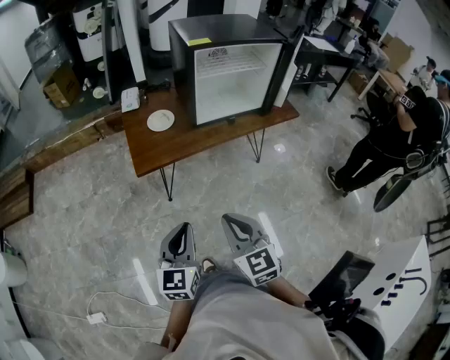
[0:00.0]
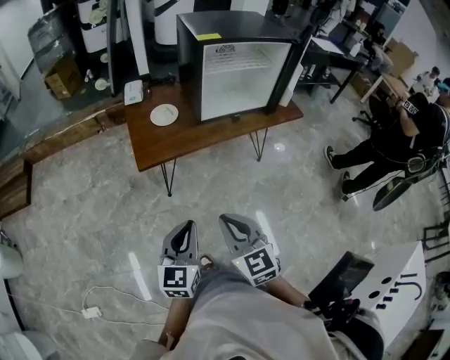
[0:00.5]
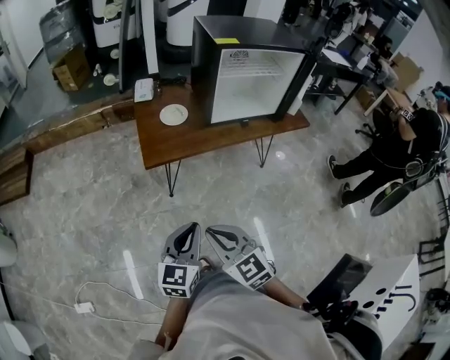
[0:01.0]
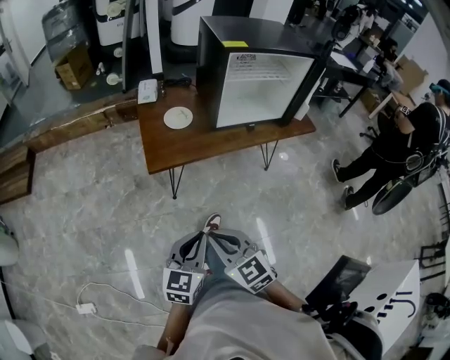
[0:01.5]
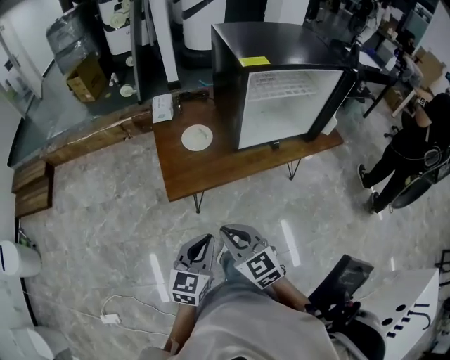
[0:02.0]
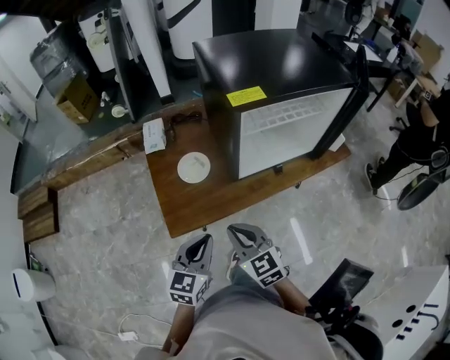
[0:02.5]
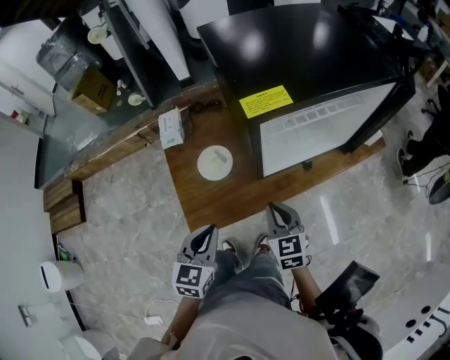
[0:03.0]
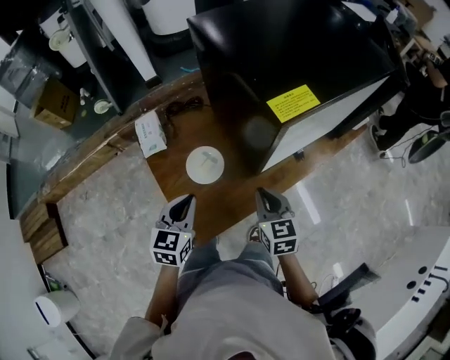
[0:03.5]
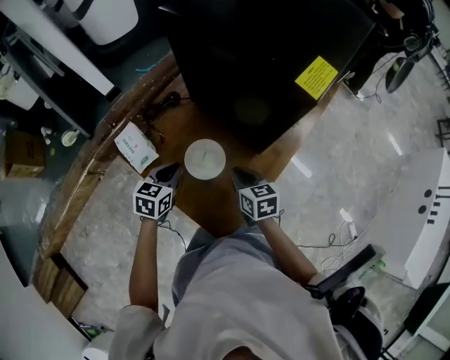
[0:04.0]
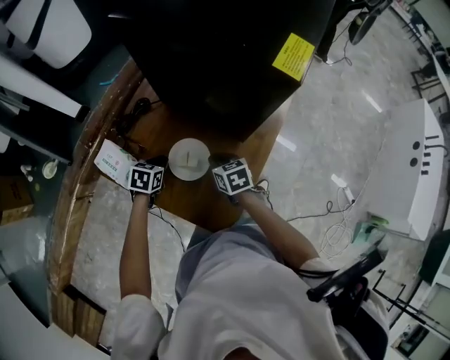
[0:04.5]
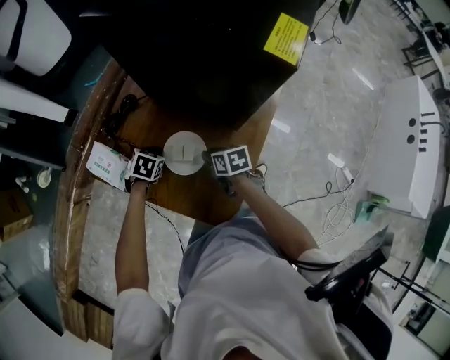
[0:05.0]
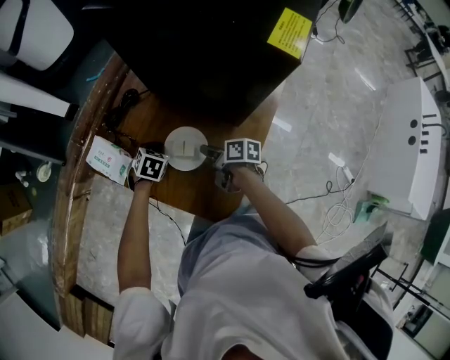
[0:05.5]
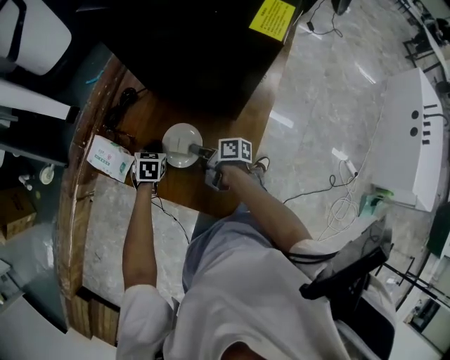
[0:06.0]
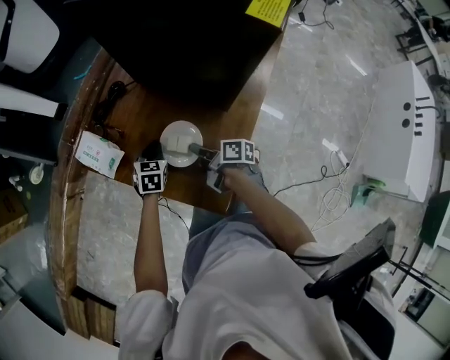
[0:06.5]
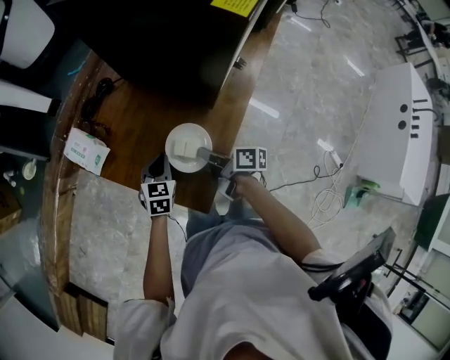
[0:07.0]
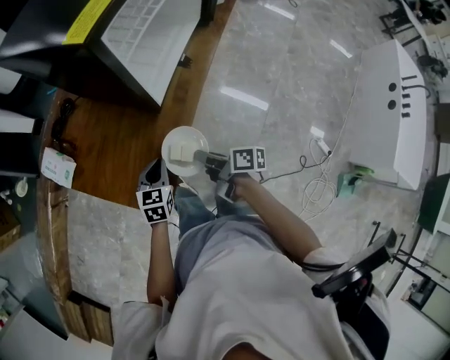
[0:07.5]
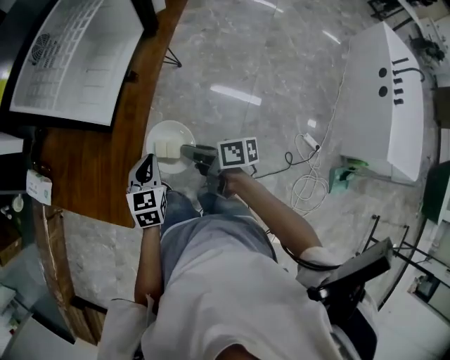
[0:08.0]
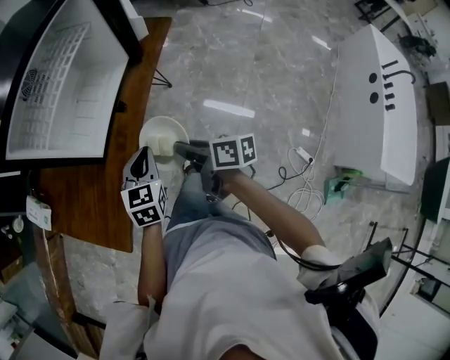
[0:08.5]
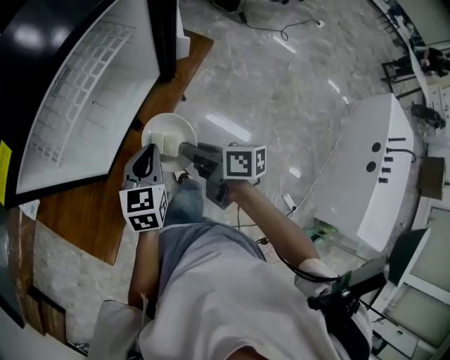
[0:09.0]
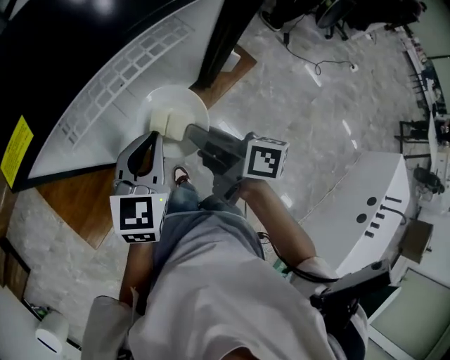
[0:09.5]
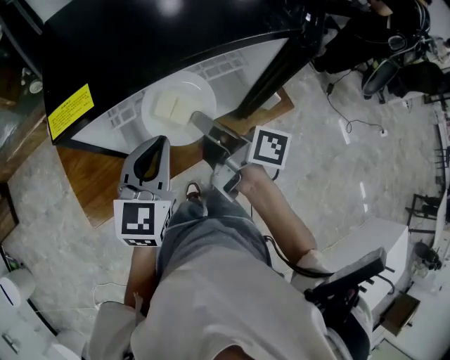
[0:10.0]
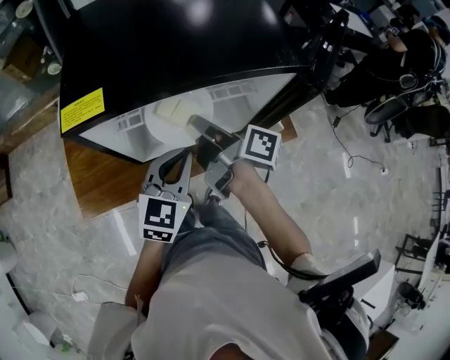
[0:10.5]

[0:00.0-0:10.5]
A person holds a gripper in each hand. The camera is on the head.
0.0 to 2.0 s: The right gripper travels forward and to the left by approximately 35 cm; the left gripper shifts roughly 30 cm forward.
2.0 to 4.0 s: Both grippers are carried about 80 cm. The left gripper swivels approximately 40 degrees; the right gripper turns by approximately 60 degrees.
4.0 to 6.5 s: Both grippers travel together downward, about 15 cm. The right gripper twists about 50 degrees clockwise, seen from behind.
6.5 to 8.5 s: The two grippers travel together, to the right, about 80 cm.
8.5 to 10.5 s: Both grippers are carried roughly 50 cm. The right gripper swivels about 40 degrees. The left gripper changes its angle by some 40 degrees.

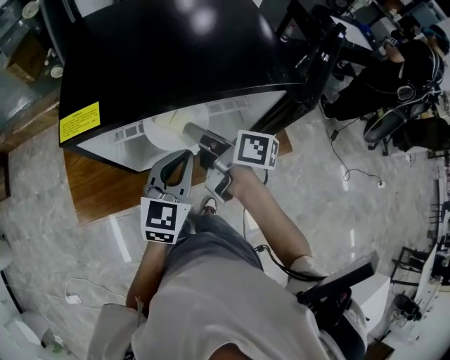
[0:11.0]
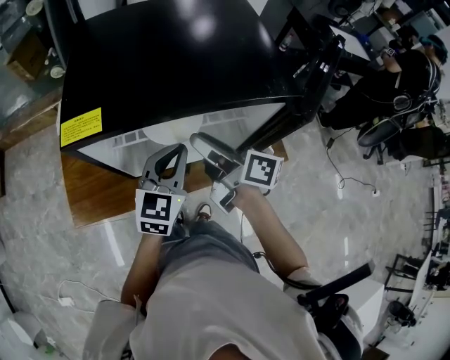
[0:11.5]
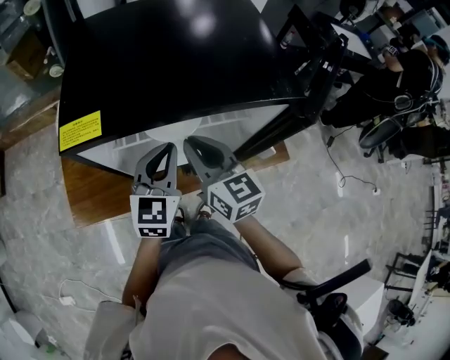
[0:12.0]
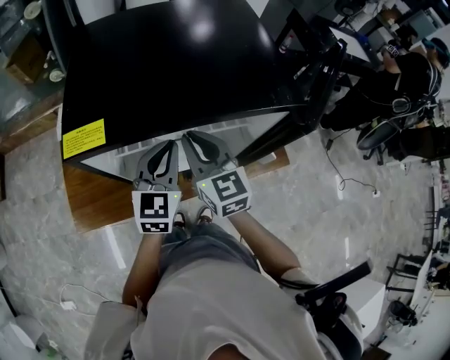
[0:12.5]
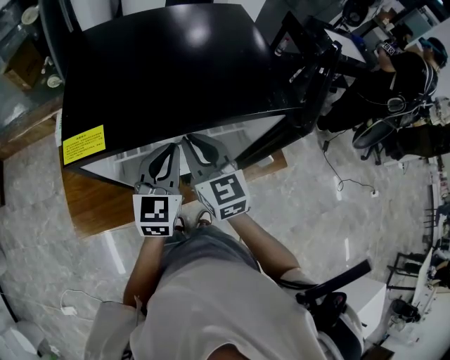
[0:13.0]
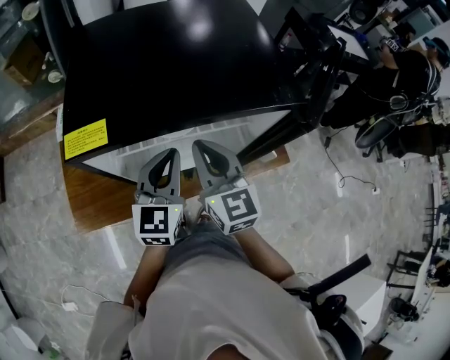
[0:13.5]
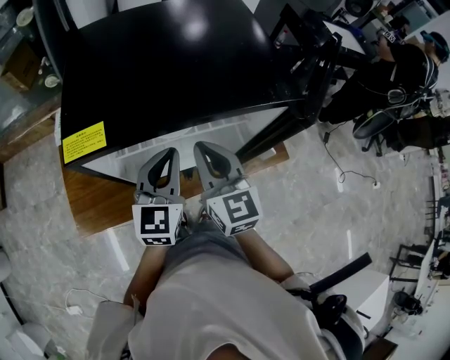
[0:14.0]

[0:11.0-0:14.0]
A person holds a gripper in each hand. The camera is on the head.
11.0 to 12.5 s: The right gripper twists approximately 60 degrees counterclockwise, seen from behind, and opens, then closes once more; the left gripper heads forward, covering roughly 5 cm.
12.5 to 14.0 s: The grippers make only small movements.

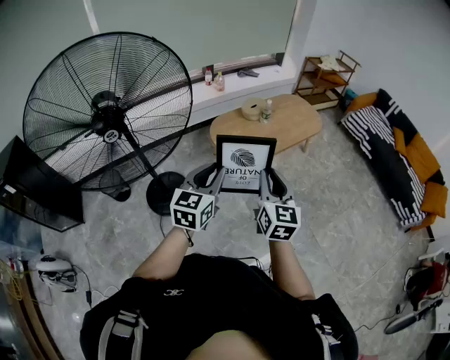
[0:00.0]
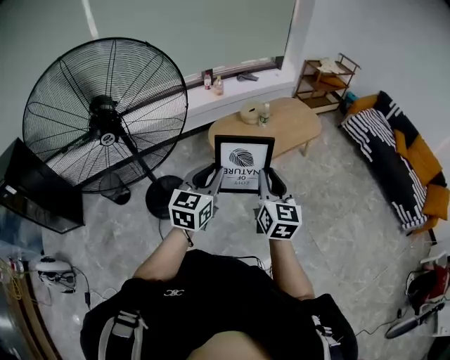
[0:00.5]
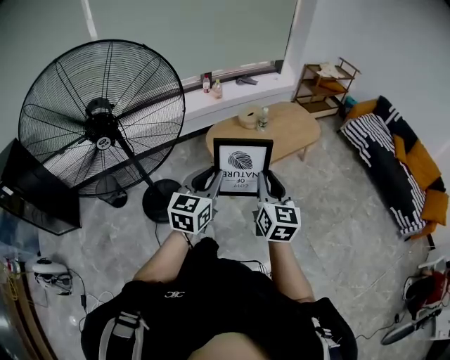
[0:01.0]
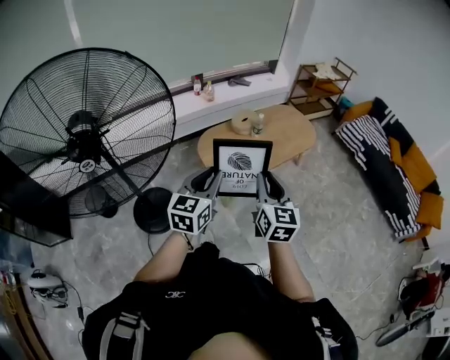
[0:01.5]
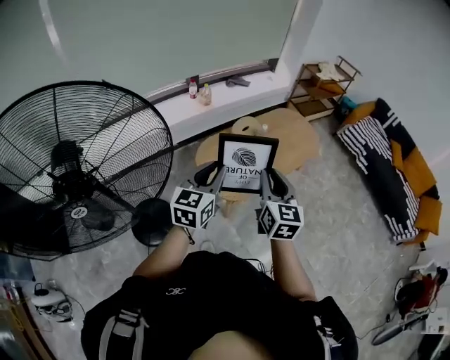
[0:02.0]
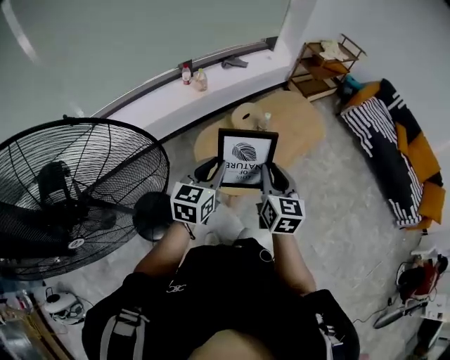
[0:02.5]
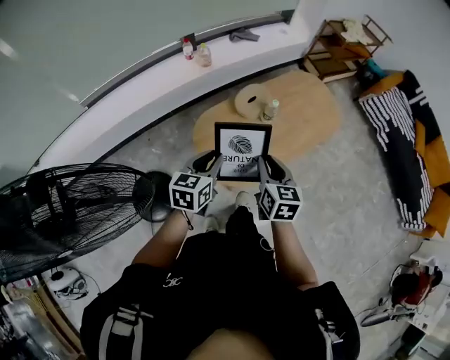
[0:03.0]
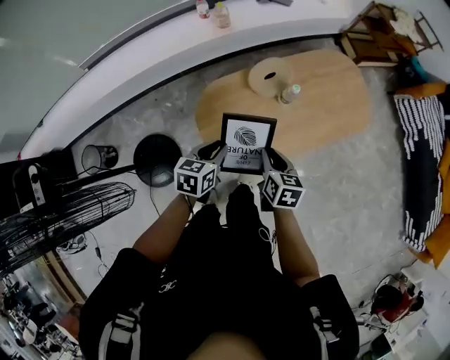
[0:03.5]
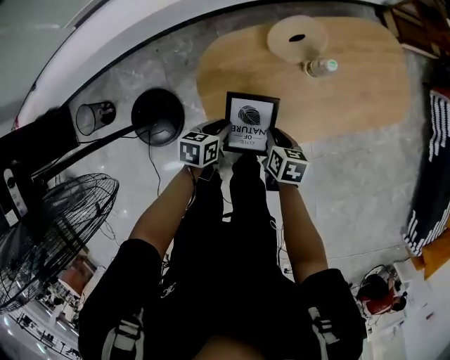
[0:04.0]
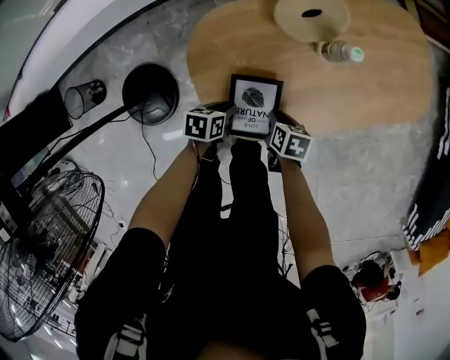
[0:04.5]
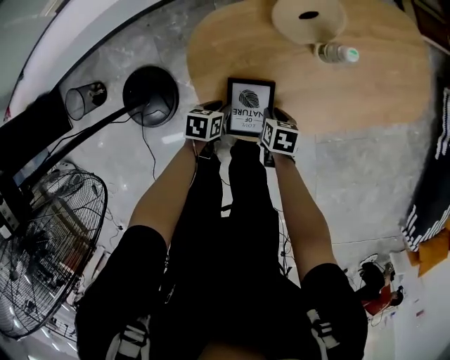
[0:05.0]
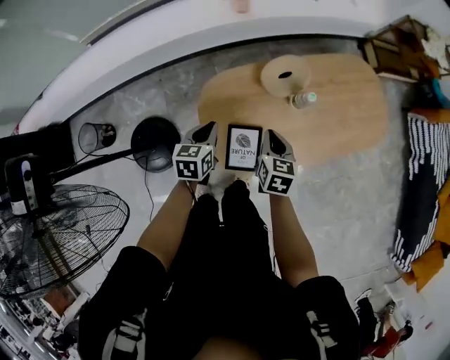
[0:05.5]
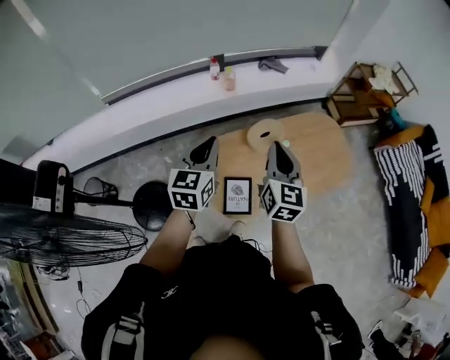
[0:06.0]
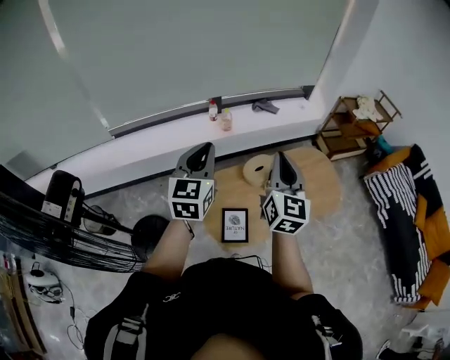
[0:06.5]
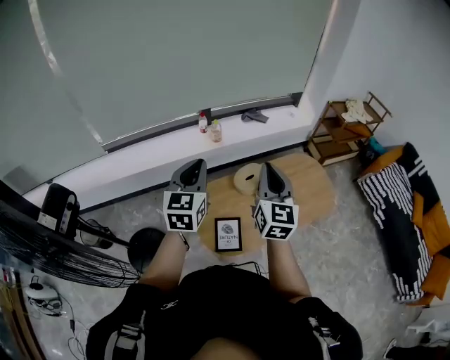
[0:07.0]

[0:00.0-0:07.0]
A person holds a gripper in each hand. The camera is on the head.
0.0 to 2.0 s: Both grippers travel together forward, roughly 35 cm.
2.0 to 3.5 s: The right gripper moves forward and downward, about 40 cm, and tips its fingers downward by approximately 30 degrees. Meanwhile the left gripper travels downward and forward by about 40 cm, and tips its fingers downward by about 30 degrees.
3.5 to 5.0 s: The two grippers go approximately 35 cm downward. The right gripper turns by some 30 degrees; the left gripper swivels about 30 degrees.
5.0 to 7.0 s: The grippers both shift upward by about 70 cm. The right gripper points its fingers some 70 degrees further upward, and closes up. Meanwhile the left gripper angles its fingers upward, by approximately 50 degrees, and closes its fingers.

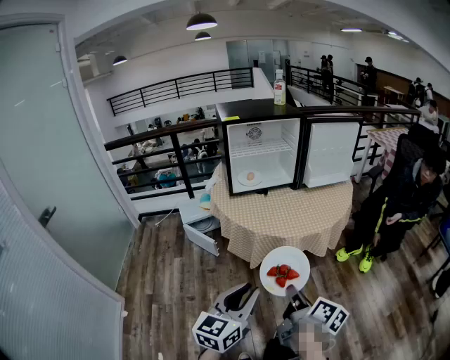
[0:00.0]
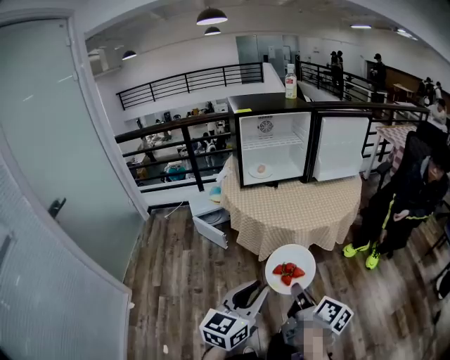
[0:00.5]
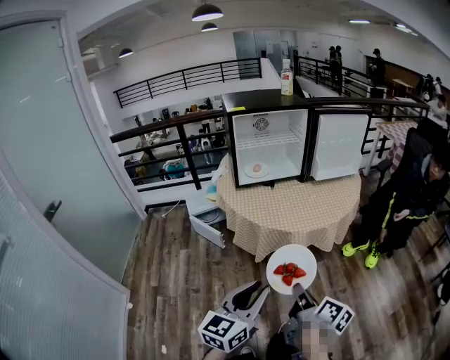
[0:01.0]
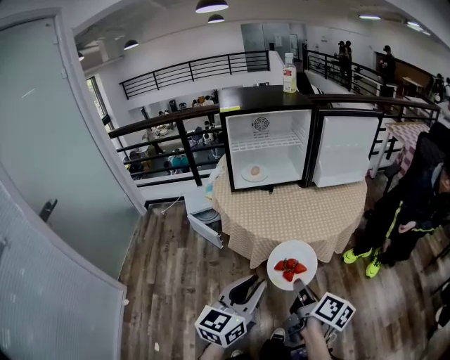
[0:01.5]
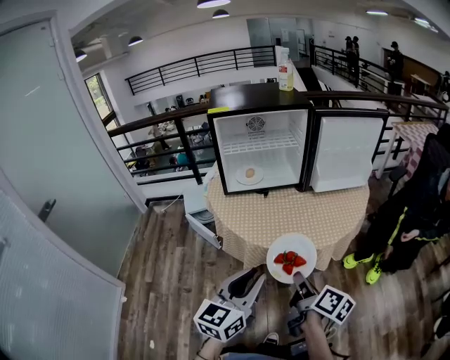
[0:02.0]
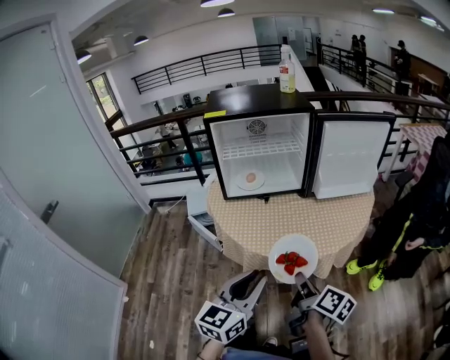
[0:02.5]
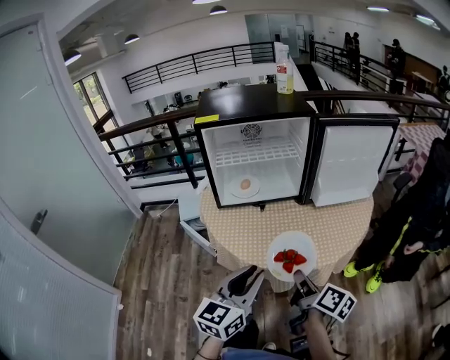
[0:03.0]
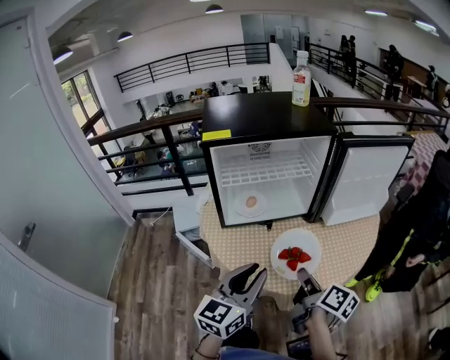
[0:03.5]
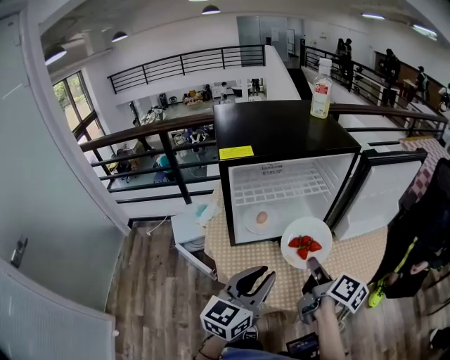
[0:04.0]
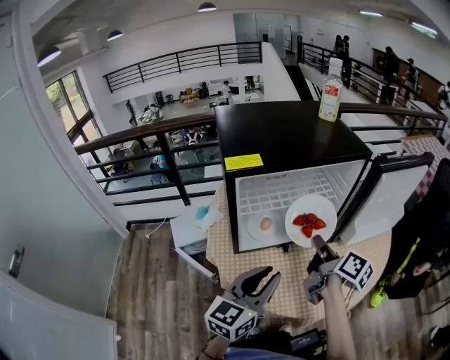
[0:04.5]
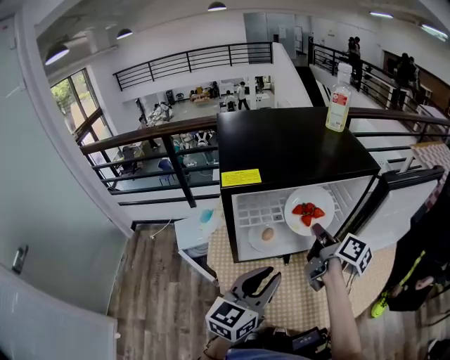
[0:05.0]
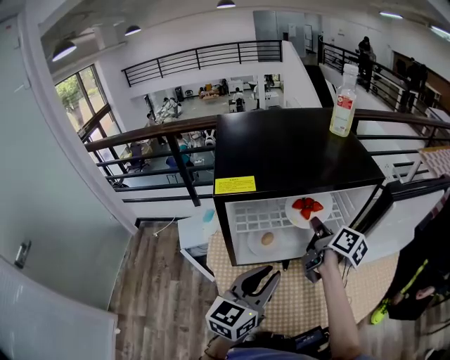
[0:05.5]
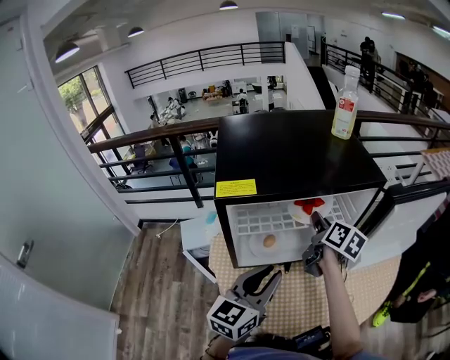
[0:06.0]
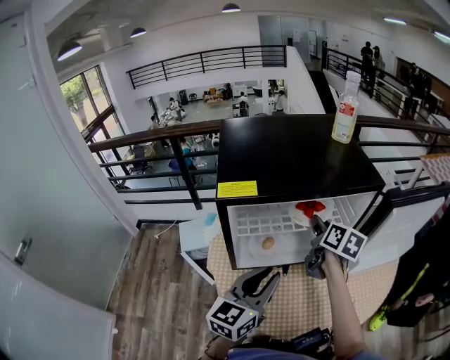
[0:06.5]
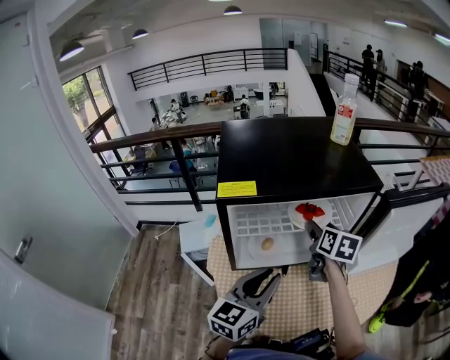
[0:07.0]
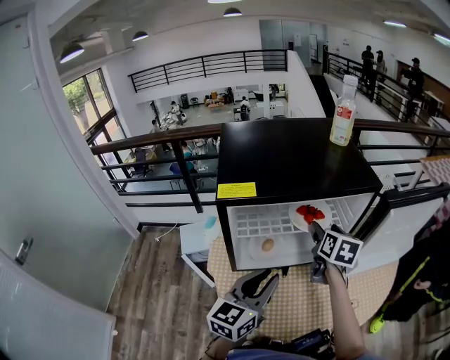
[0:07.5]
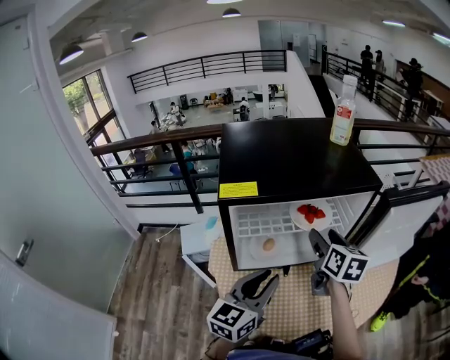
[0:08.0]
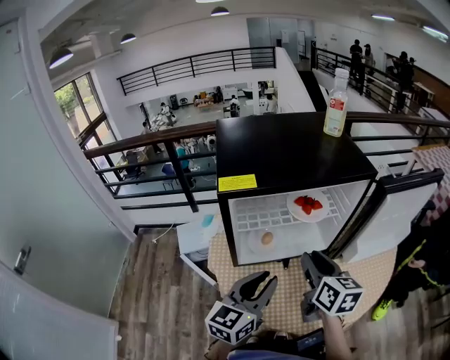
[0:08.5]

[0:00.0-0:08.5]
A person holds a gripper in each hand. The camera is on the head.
0.0 to 2.0 s: Both grippers move forward and to the right, approximately 20 cm.
2.0 to 4.0 s: The two grippers go about 30 cm forward.
4.0 to 6.5 s: The right gripper is displaced forward by about 25 cm, and swivels approximately 30 degrees. The left gripper moves forward, approximately 10 cm.
6.5 to 8.5 s: The right gripper goes some 15 cm backward, and opens, then closes once more.
